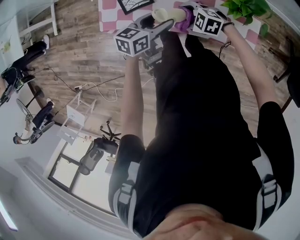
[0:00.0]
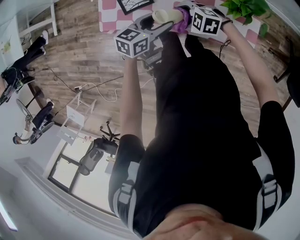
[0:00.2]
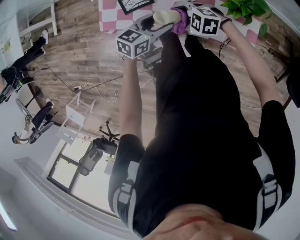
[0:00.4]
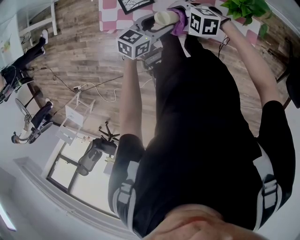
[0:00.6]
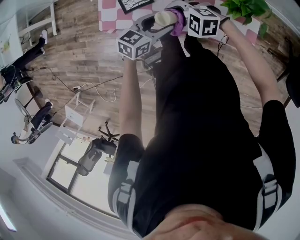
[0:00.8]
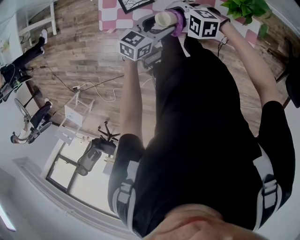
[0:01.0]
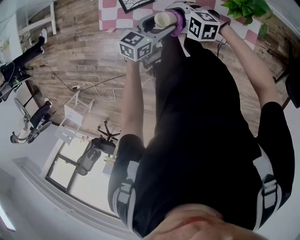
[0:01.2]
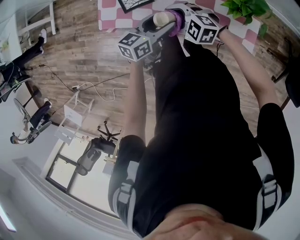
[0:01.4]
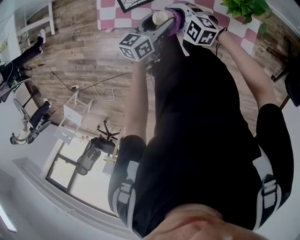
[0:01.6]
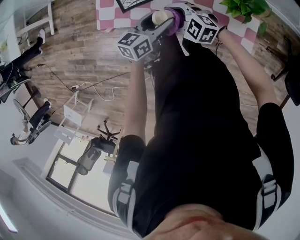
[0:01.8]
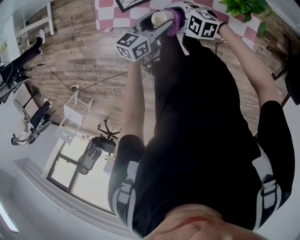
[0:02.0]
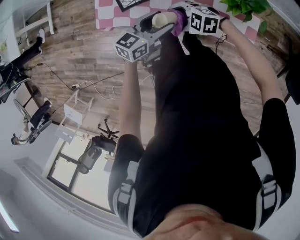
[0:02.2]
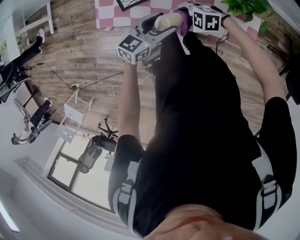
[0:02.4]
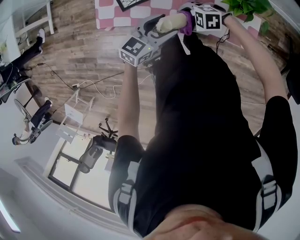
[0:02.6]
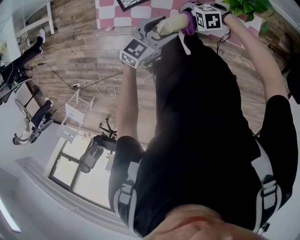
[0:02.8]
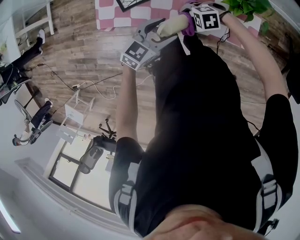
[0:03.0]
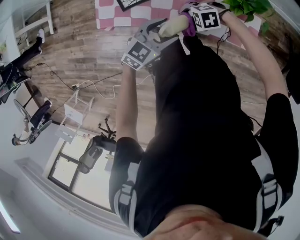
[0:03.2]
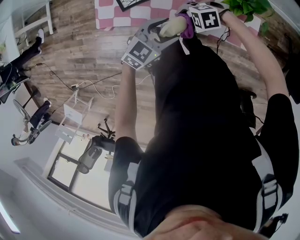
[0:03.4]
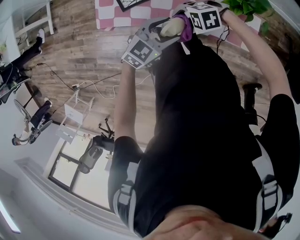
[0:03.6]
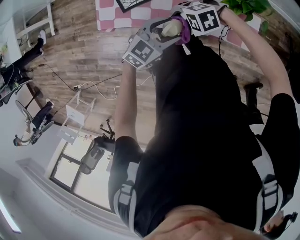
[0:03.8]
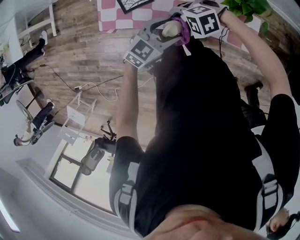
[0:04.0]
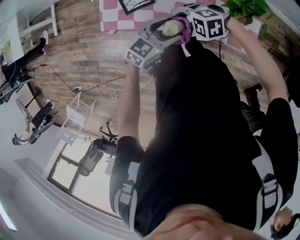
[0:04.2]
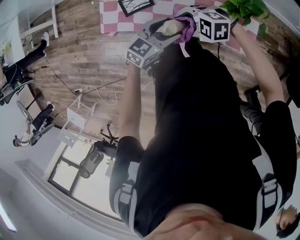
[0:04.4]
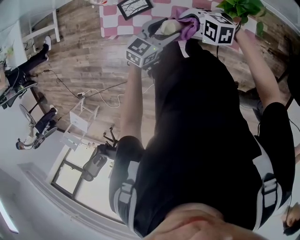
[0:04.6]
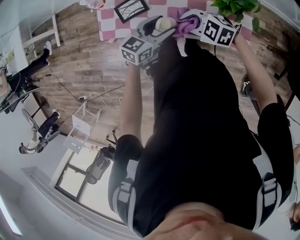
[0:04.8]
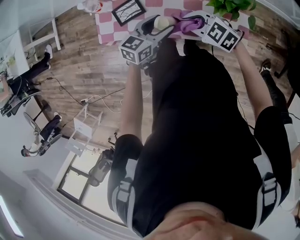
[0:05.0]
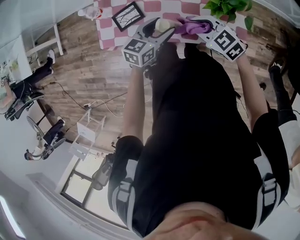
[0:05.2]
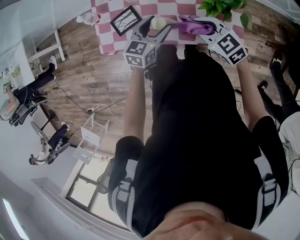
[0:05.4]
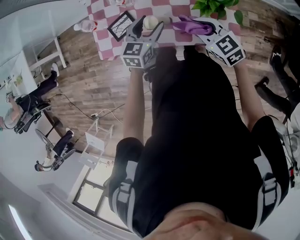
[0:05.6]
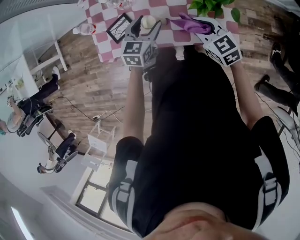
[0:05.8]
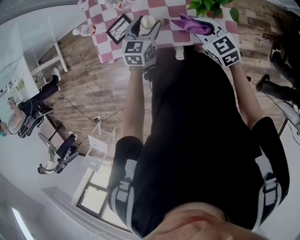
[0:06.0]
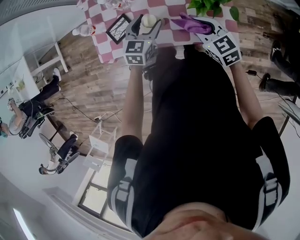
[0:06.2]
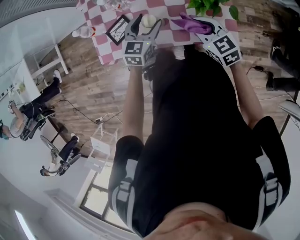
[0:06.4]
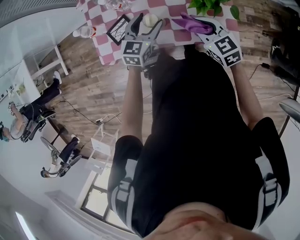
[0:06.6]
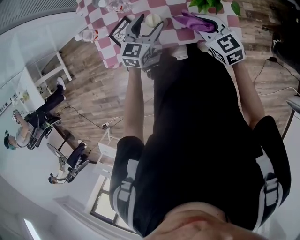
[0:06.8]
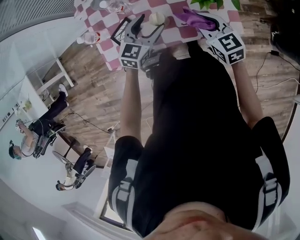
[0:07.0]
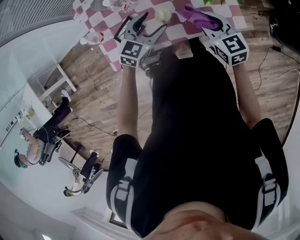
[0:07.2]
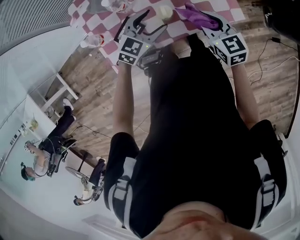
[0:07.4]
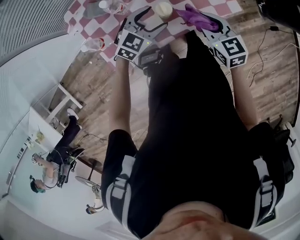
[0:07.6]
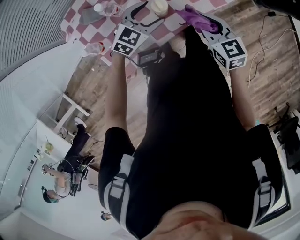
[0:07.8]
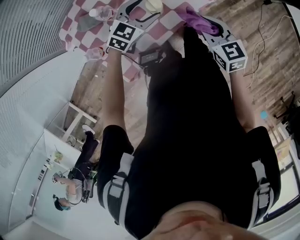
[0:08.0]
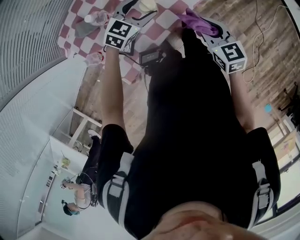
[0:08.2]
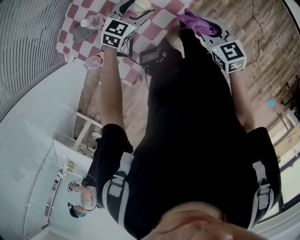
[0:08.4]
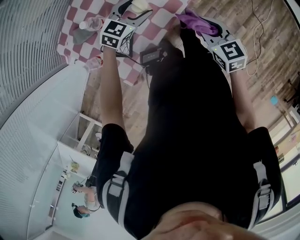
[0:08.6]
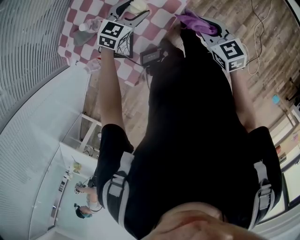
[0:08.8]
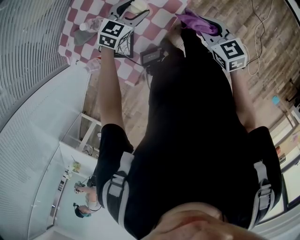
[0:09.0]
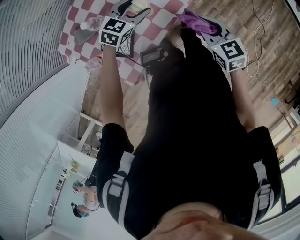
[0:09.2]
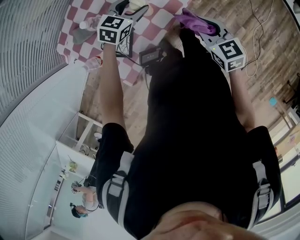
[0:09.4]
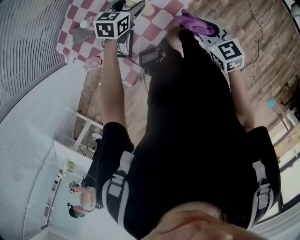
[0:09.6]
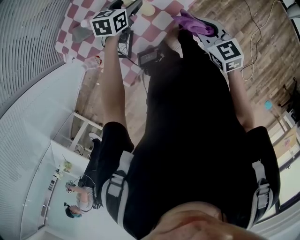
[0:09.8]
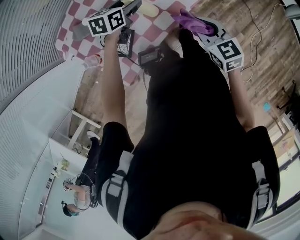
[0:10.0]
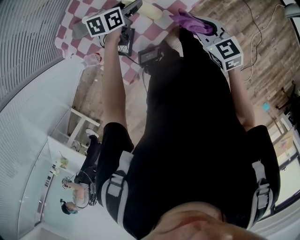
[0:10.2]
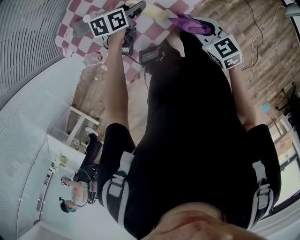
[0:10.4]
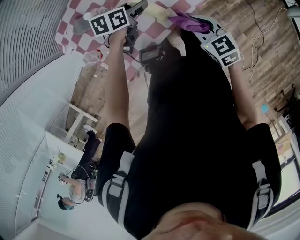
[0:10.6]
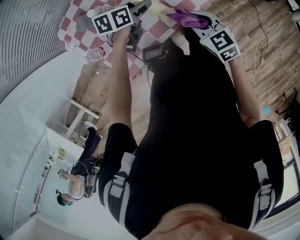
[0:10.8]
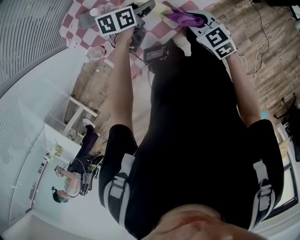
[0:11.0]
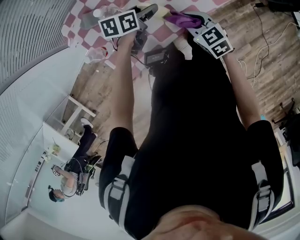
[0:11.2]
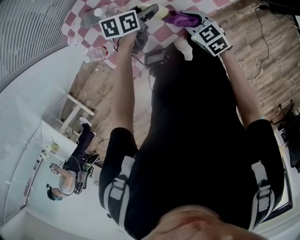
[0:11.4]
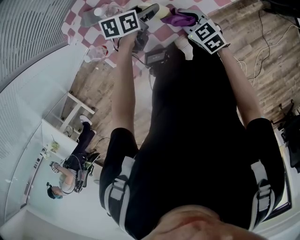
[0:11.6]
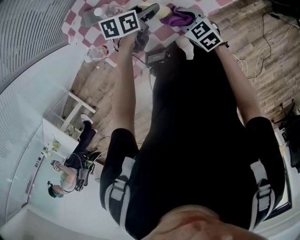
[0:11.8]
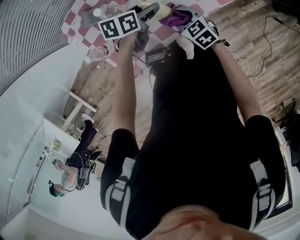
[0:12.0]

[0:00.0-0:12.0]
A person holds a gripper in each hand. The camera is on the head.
0:00.0 to 0:01.6: The right gripper heads upward, covering some 5 cm.
0:01.6 to 0:03.0: The left gripper ends up about 5 cm from where it was, and turns by approximately 40 degrees, while the right gripper shifts some 10 cm downward, and swivels some 30 degrees.
0:03.0 to 0:04.4: The right gripper shifts roughly 10 cm upward.
0:04.4 to 0:06.0: The right gripper ends up roughly 20 cm from where it was, rotates approximately 70 degrees, and closes up. Meanwhile the left gripper shifts by roughly 10 cm.
0:06.0 to 0:07.6: The left gripper rotates approximately 60 degrees. The right gripper changes place by approximately 10 cm, and turns by about 40 degrees.
0:07.6 to 0:09.0: The right gripper is displaced backward and to the right by roughly 10 cm, and turns by roughly 20 degrees.
0:09.0 to 0:10.4: The two grippers go some 5 cm to the left. The left gripper twists about 50 degrees counterclockwise, seen from behind.
0:10.4 to 0:12.0: The right gripper heads downward, to the left and forward, covering some 15 cm.

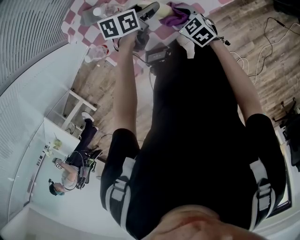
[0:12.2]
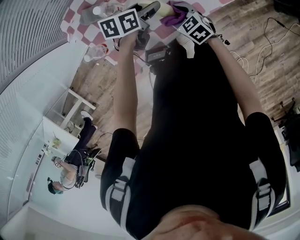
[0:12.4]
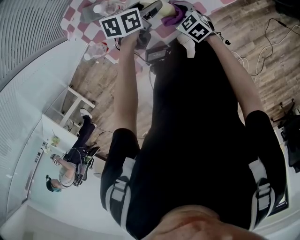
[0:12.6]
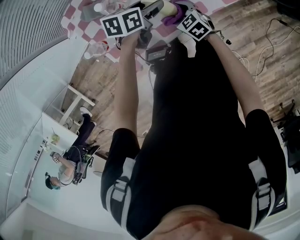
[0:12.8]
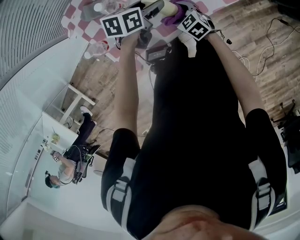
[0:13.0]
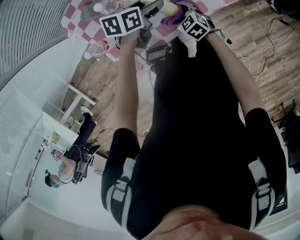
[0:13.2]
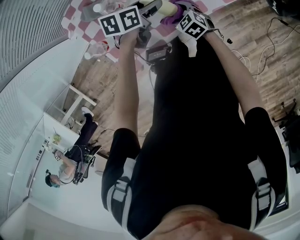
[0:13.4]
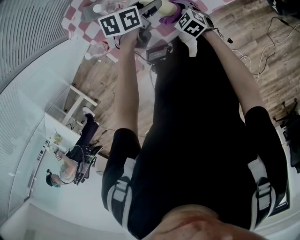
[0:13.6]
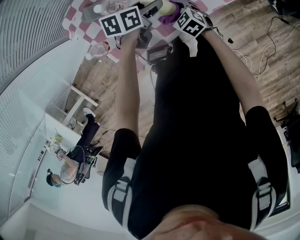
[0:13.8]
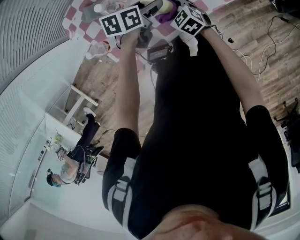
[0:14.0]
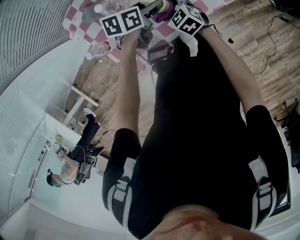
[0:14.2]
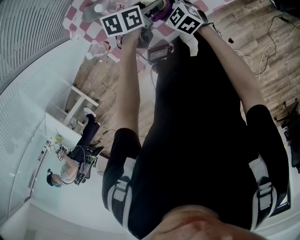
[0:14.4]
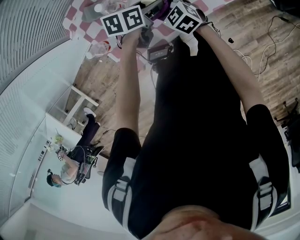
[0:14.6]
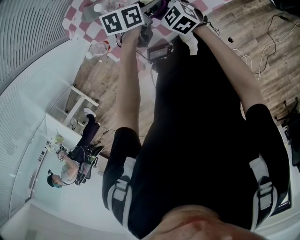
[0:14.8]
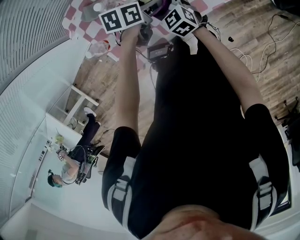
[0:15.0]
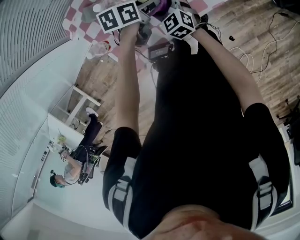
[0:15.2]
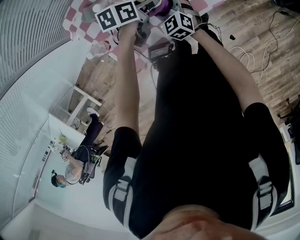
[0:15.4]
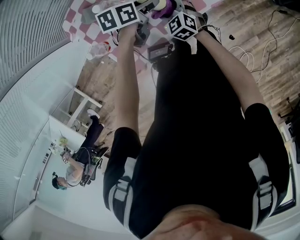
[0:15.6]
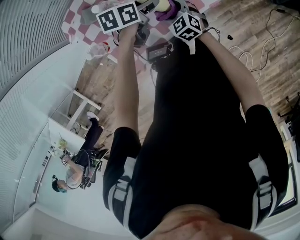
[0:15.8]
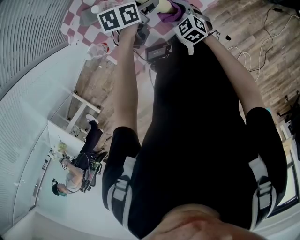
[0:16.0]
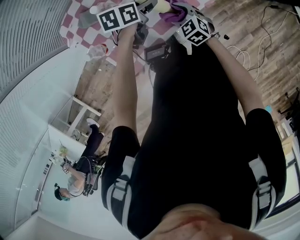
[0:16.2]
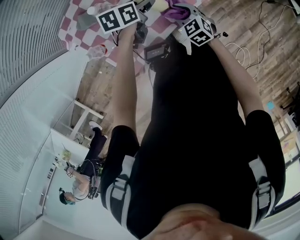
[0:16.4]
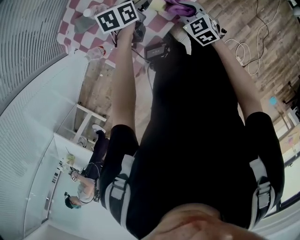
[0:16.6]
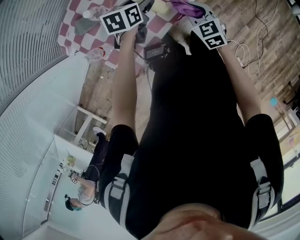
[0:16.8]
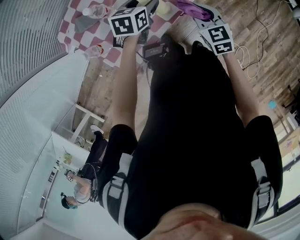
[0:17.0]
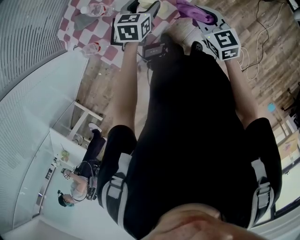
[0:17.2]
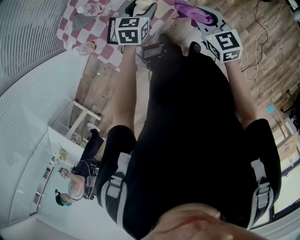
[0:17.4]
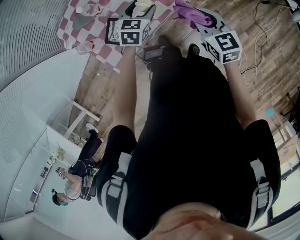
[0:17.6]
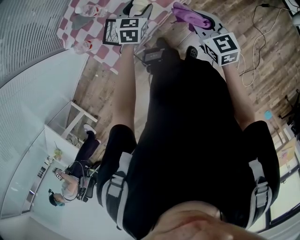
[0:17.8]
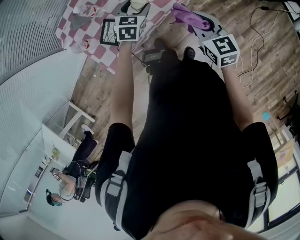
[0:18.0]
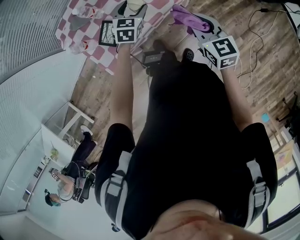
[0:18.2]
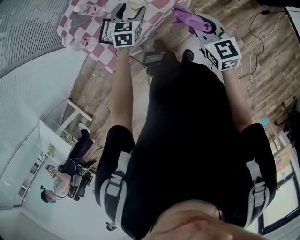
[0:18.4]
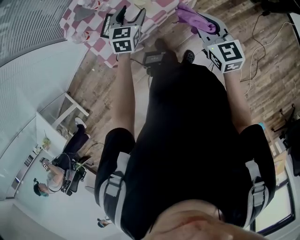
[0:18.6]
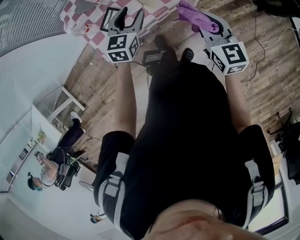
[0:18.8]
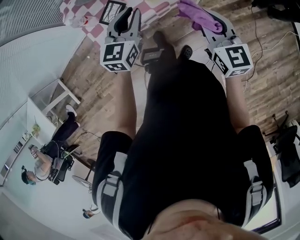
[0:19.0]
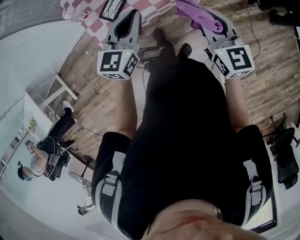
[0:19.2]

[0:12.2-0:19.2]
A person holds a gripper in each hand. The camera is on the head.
0:12.2 to 0:13.6: The right gripper moves downward, approximately 5 cm, and opens up.
0:13.6 to 0:15.0: The right gripper shifts approximately 10 cm upward and to the left.
0:15.0 to 0:16.4: The right gripper is displaced to the right and backward by roughly 10 cm, and closes its fingers.
0:16.4 to 0:17.8: The left gripper moves to the right and backward, some 10 cm, and changes its angle by some 40 degrees, while the right gripper shifts approximately 20 cm upward, to the right and backward, and swivels approximately 30 degrees.
0:17.8 to 0:19.2: The left gripper heads upward and backward, covering some 25 cm, swivels some 30 degrees, and closes its fingers; the right gripper heads upward and backward, covering roughly 10 cm.

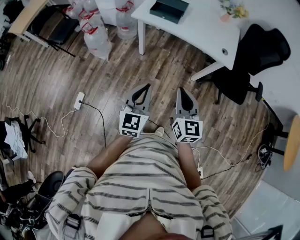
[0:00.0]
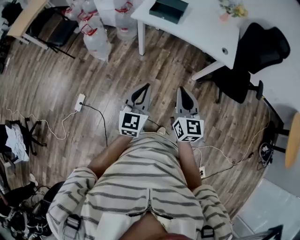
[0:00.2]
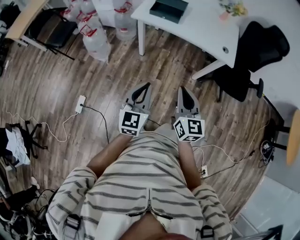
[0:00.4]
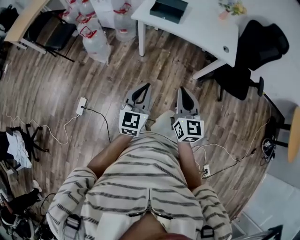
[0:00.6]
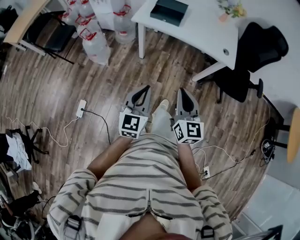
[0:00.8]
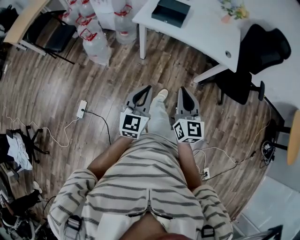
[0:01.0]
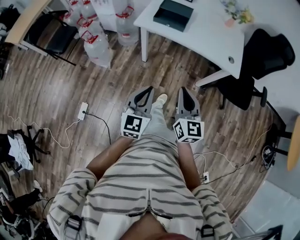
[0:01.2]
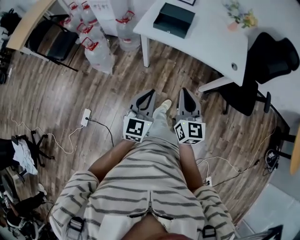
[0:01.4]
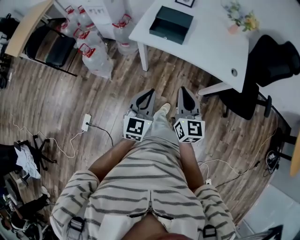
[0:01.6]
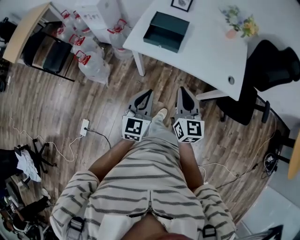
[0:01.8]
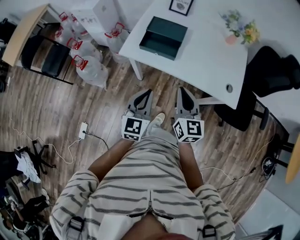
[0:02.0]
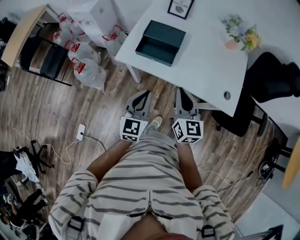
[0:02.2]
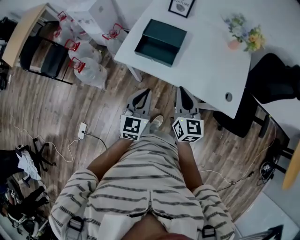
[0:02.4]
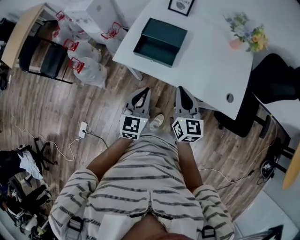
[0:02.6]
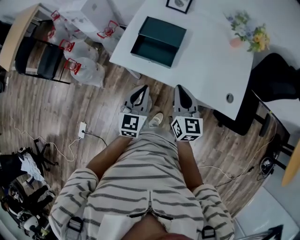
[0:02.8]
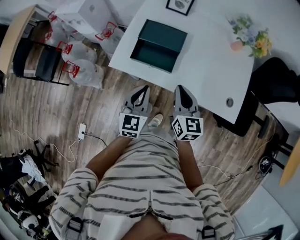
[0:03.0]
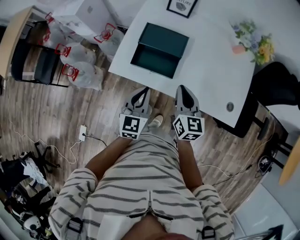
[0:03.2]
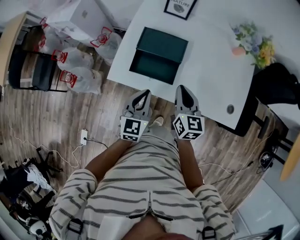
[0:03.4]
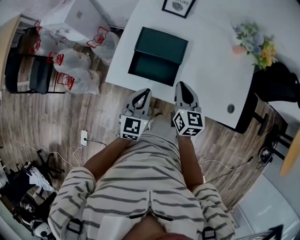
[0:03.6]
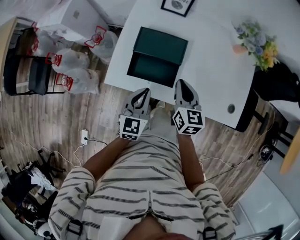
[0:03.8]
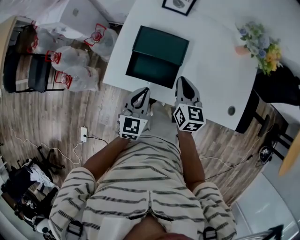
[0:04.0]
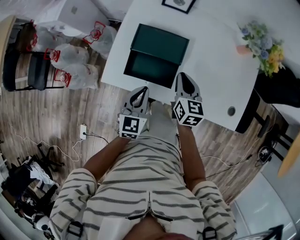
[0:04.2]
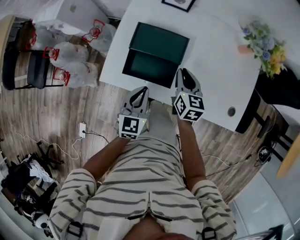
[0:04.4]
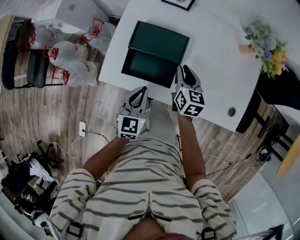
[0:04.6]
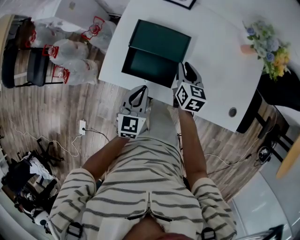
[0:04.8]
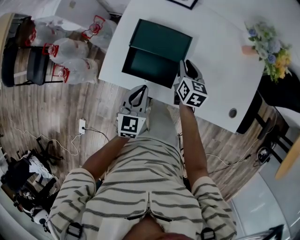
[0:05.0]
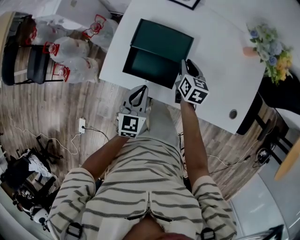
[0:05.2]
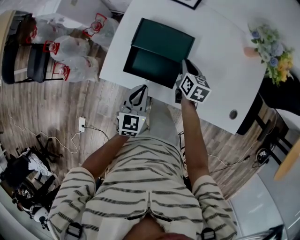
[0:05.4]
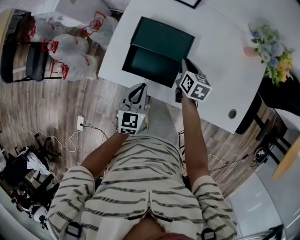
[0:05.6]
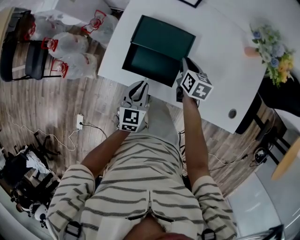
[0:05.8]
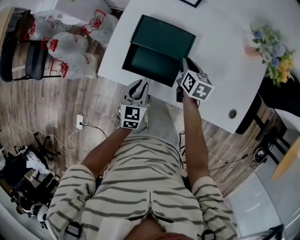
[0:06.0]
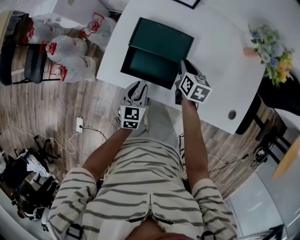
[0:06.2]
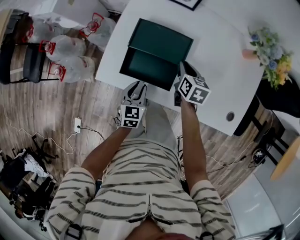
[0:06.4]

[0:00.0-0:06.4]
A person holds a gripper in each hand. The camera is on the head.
0:00.0 to 0:01.6: Both grippers move forward, approximately 20 cm.
0:01.6 to 0:03.2: The two grippers go roughly 30 cm forward.
0:03.2 to 0:04.8: The left gripper heads forward and downward, covering roughly 10 cm, while the right gripper goes approximately 20 cm forward and downward.
0:04.8 to 0:06.4: The right gripper shifts by roughly 5 cm, while the left gripper goes approximately 10 cm downward, and opens up.
